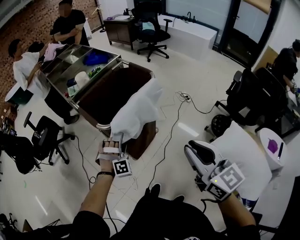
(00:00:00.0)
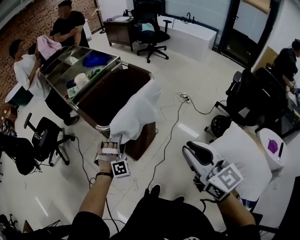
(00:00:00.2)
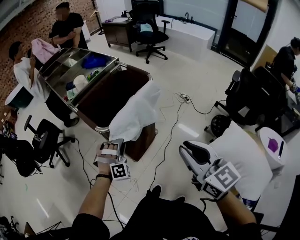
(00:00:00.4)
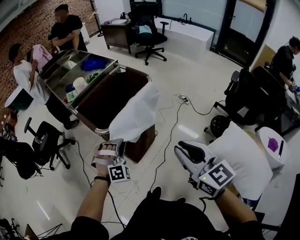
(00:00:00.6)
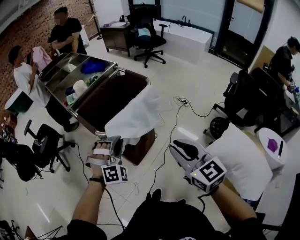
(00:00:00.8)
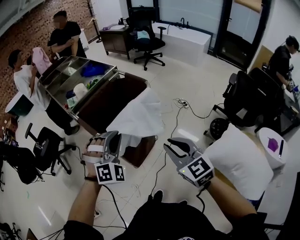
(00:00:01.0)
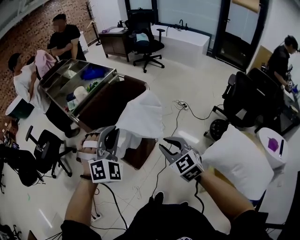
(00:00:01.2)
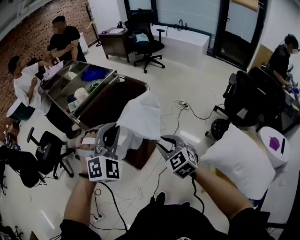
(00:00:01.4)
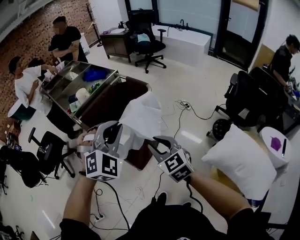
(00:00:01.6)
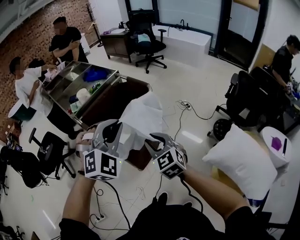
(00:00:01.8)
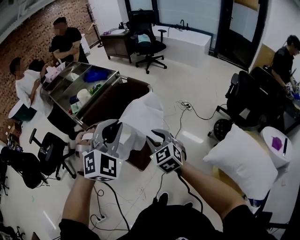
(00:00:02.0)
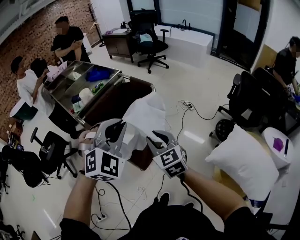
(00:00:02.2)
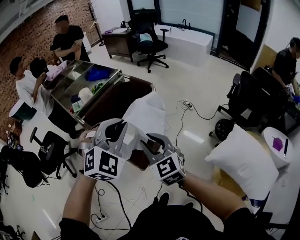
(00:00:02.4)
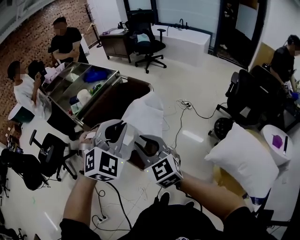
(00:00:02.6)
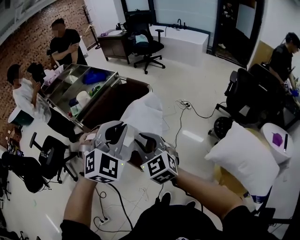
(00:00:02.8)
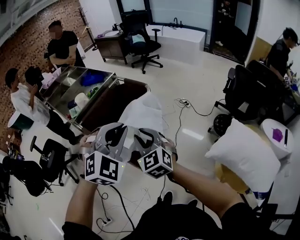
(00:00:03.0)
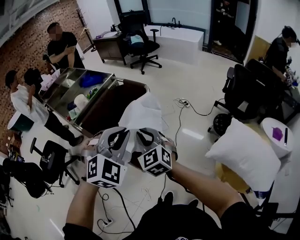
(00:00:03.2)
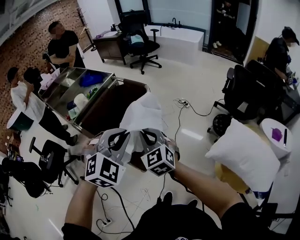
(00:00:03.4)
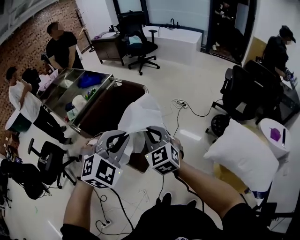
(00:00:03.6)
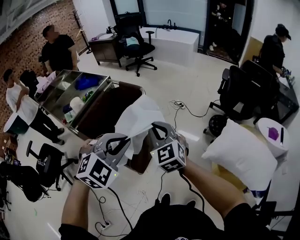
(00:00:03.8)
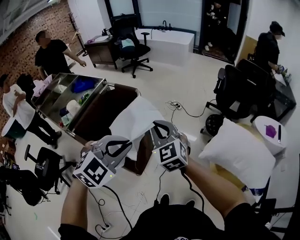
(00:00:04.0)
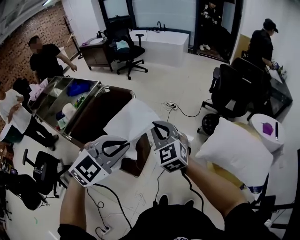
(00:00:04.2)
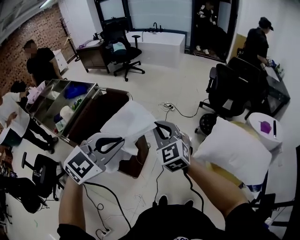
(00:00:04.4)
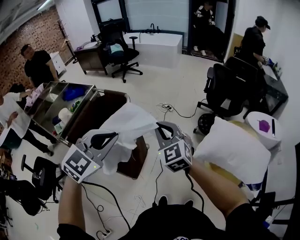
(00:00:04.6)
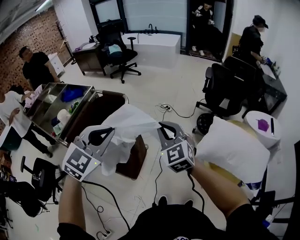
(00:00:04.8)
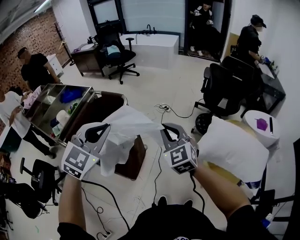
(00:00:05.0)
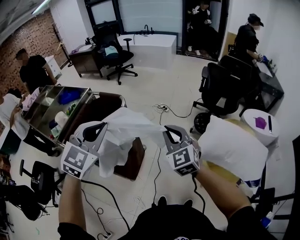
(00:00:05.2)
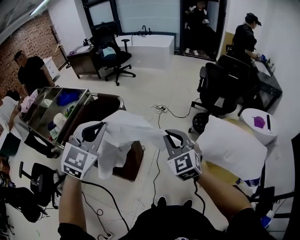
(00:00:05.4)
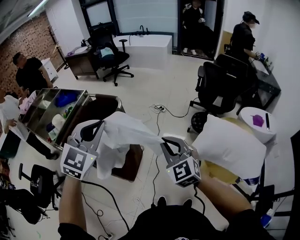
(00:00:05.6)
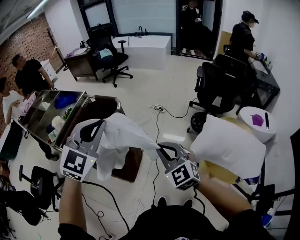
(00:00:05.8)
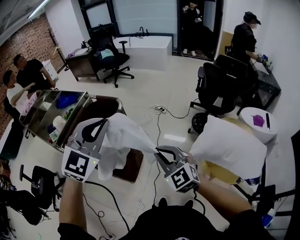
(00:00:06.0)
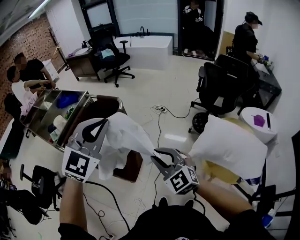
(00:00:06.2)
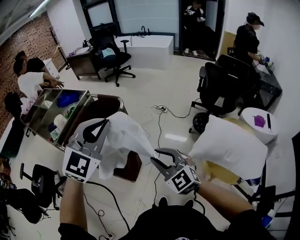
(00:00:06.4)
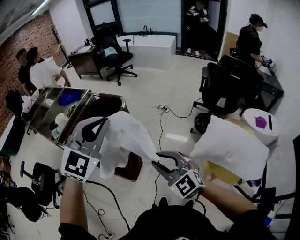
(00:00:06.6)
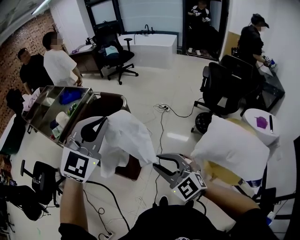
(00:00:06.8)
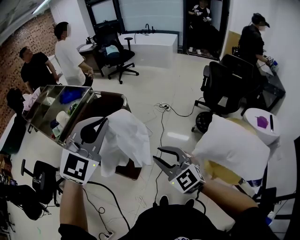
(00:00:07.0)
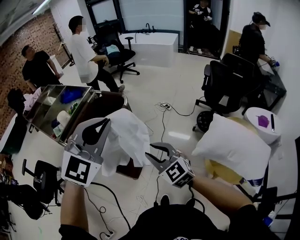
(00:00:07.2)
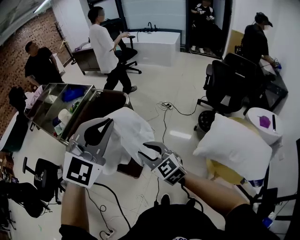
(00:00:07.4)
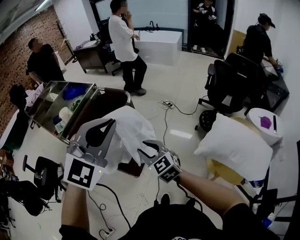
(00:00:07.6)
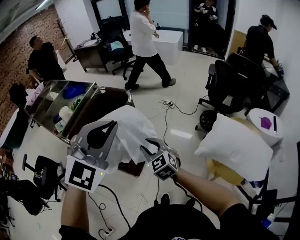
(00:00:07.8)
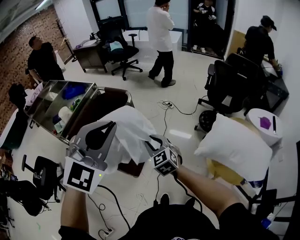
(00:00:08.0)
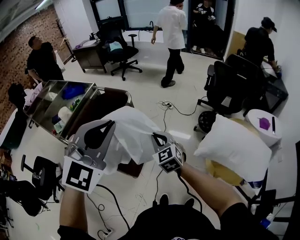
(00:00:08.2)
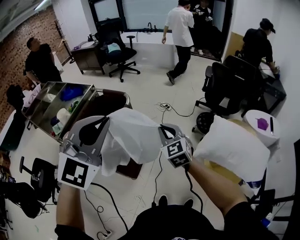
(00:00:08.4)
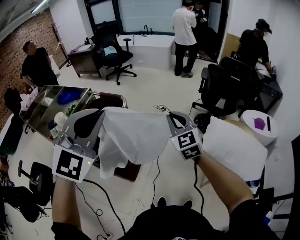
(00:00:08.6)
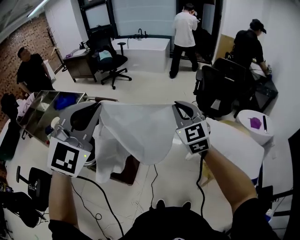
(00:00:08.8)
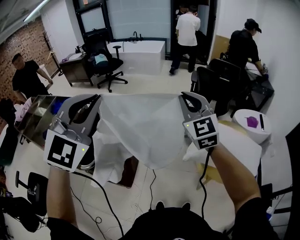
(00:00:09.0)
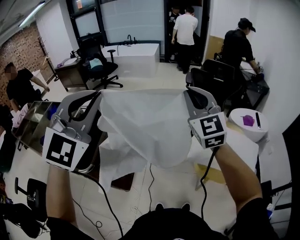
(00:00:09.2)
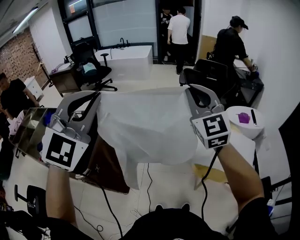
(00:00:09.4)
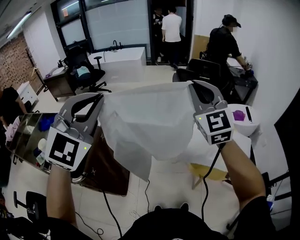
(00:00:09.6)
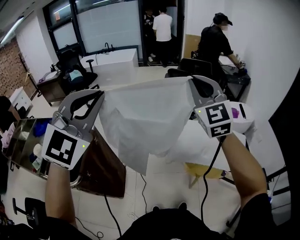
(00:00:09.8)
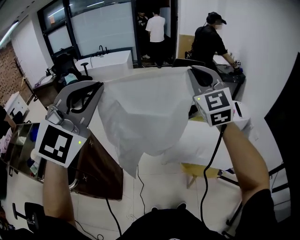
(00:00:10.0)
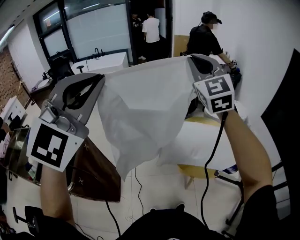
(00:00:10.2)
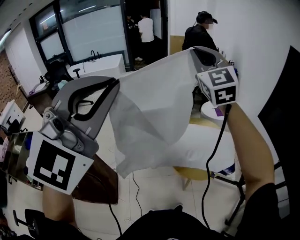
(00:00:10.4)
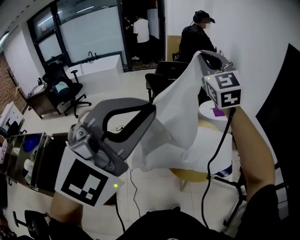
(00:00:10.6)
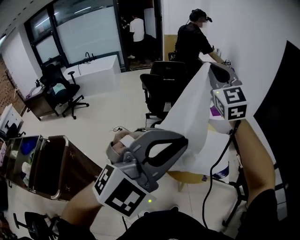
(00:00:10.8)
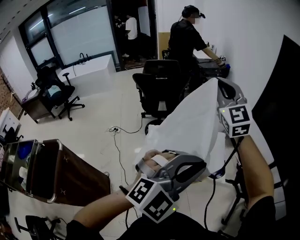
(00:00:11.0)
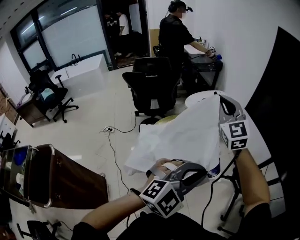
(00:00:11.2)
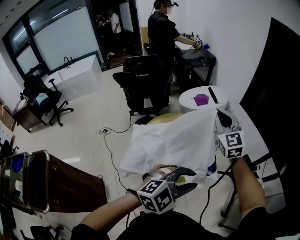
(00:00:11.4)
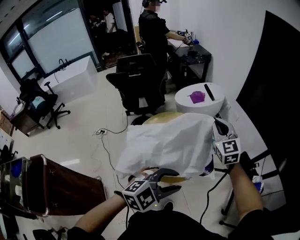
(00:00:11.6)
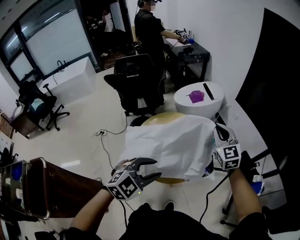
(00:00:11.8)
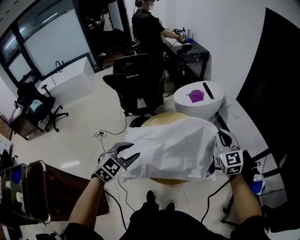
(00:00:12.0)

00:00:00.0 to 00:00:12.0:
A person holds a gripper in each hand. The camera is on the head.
00:00:00.0 to 00:00:01.6: The right gripper is displaced forward, downward and to the left by roughly 15 cm, and changes its angle by about 20 degrees; the left gripper shifts some 30 cm upward, changes its angle by about 30 degrees, and closes up.
00:00:01.6 to 00:00:03.0: The right gripper is displaced to the left by approximately 5 cm.
00:00:03.0 to 00:00:04.4: The right gripper shifts by roughly 15 cm, and closes. The left gripper changes place by some 5 cm, and turns by approximately 40 degrees.
00:00:04.4 to 00:00:06.0: The right gripper is displaced backward by some 10 cm. The left gripper moves upward, approximately 5 cm, and turns by some 20 degrees.
00:00:06.0 to 00:00:07.6: The right gripper goes approximately 10 cm to the left and downward, and opens its fingers.
00:00:07.6 to 00:00:09.0: The right gripper moves upward, to the right and forward, roughly 35 cm, swivels approximately 40 degrees, and closes its fingers, while the left gripper is displaced upward by some 10 cm.
00:00:09.0 to 00:00:10.4: The left gripper ends up some 30 cm from where it was, and turns by about 30 degrees, while the right gripper ends up some 35 cm from where it was, and rotates about 30 degrees.
00:00:10.4 to 00:00:12.0: The right gripper ends up approximately 50 cm from where it was, and rotates about 30 degrees, while the left gripper is displaced downward by some 40 cm, angles its fingers downward, by some 40 degrees, and opens its fingers.

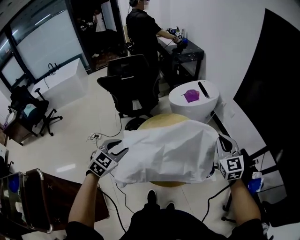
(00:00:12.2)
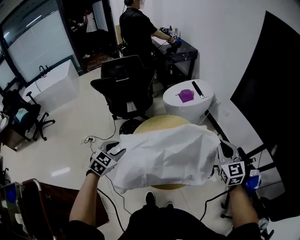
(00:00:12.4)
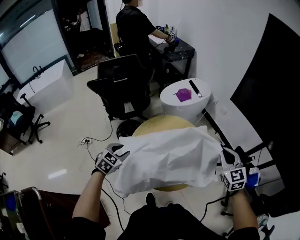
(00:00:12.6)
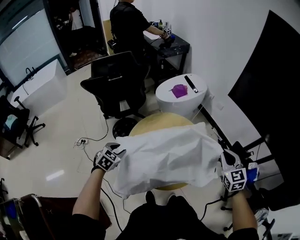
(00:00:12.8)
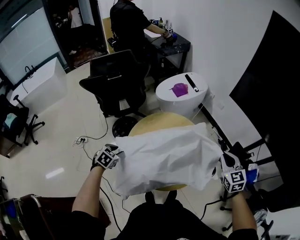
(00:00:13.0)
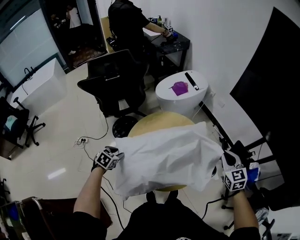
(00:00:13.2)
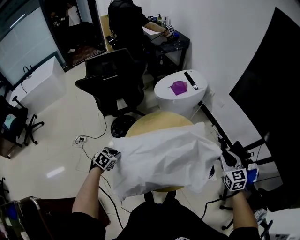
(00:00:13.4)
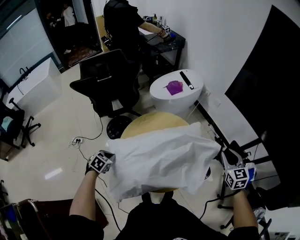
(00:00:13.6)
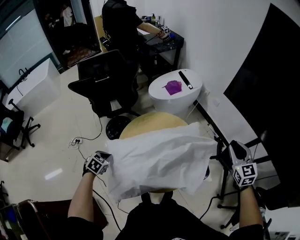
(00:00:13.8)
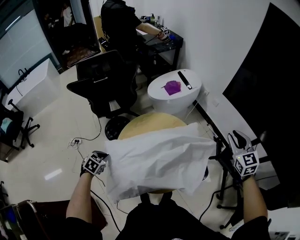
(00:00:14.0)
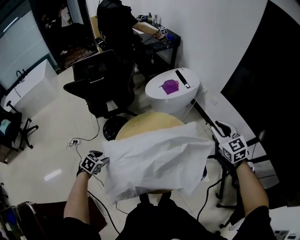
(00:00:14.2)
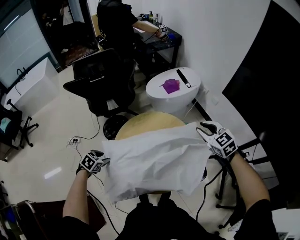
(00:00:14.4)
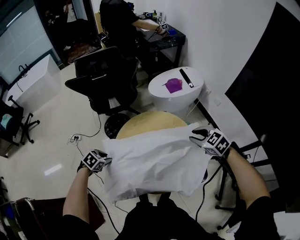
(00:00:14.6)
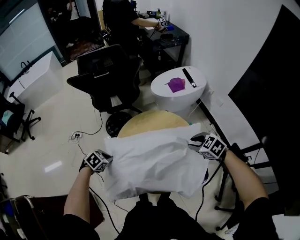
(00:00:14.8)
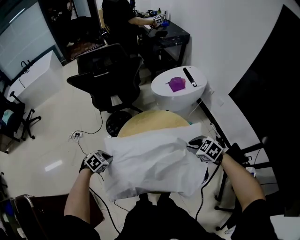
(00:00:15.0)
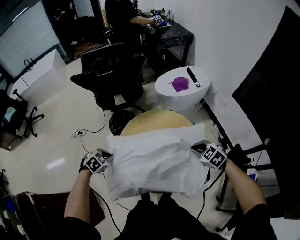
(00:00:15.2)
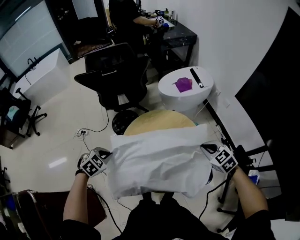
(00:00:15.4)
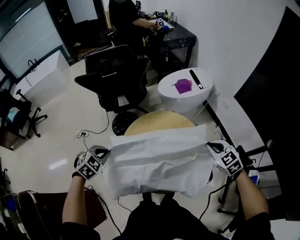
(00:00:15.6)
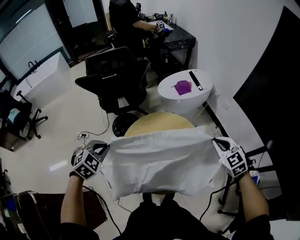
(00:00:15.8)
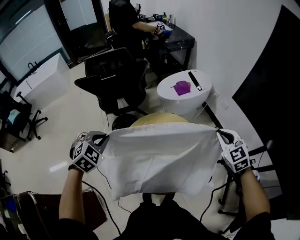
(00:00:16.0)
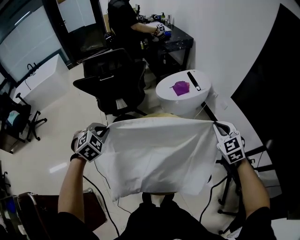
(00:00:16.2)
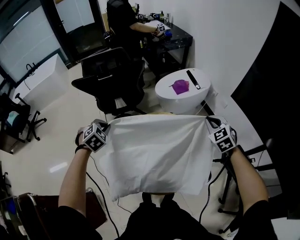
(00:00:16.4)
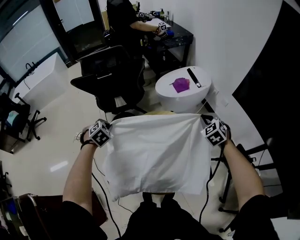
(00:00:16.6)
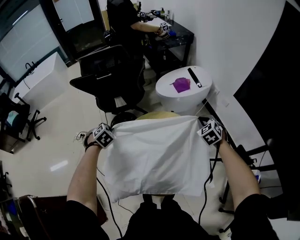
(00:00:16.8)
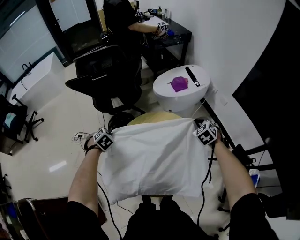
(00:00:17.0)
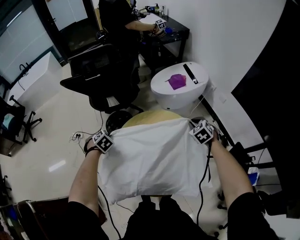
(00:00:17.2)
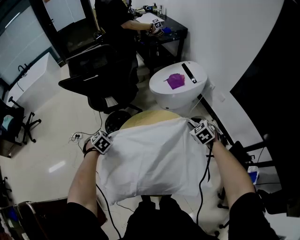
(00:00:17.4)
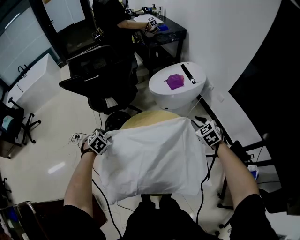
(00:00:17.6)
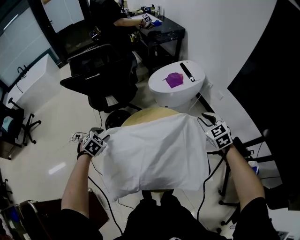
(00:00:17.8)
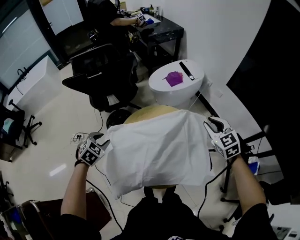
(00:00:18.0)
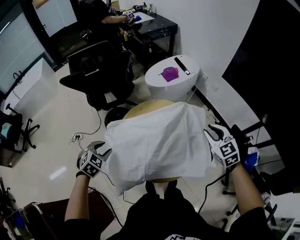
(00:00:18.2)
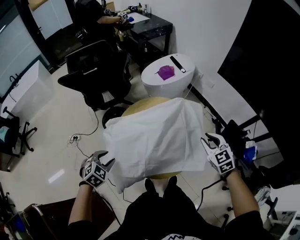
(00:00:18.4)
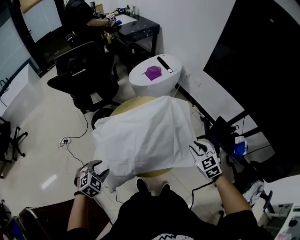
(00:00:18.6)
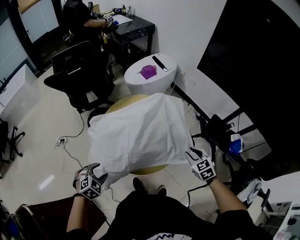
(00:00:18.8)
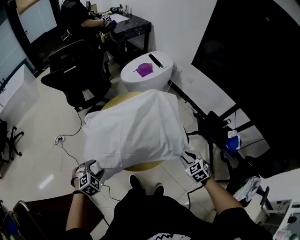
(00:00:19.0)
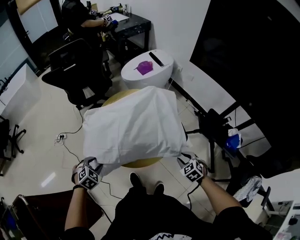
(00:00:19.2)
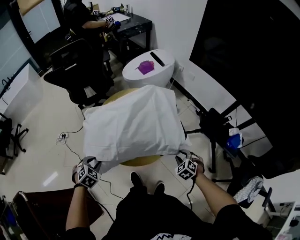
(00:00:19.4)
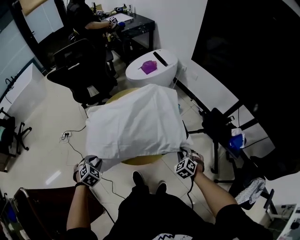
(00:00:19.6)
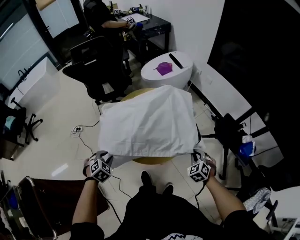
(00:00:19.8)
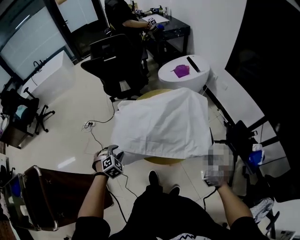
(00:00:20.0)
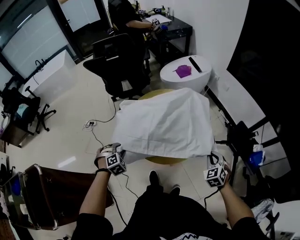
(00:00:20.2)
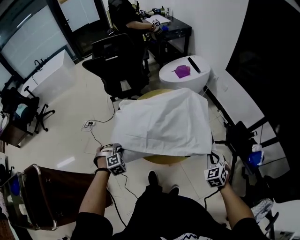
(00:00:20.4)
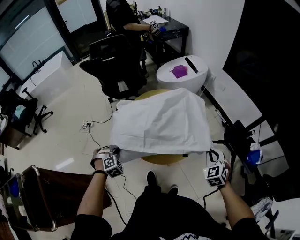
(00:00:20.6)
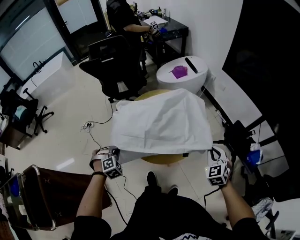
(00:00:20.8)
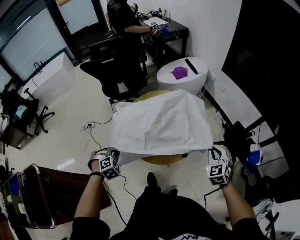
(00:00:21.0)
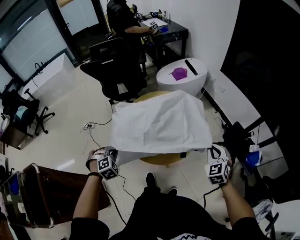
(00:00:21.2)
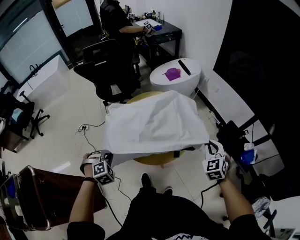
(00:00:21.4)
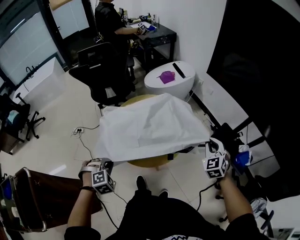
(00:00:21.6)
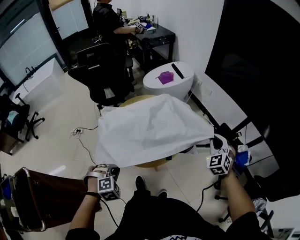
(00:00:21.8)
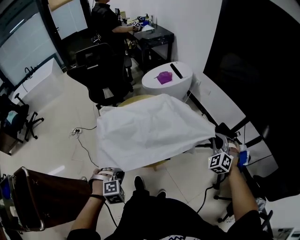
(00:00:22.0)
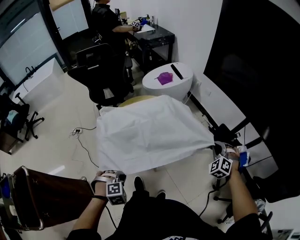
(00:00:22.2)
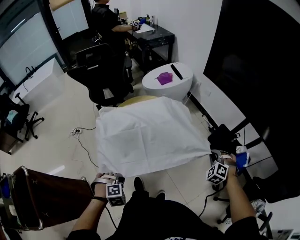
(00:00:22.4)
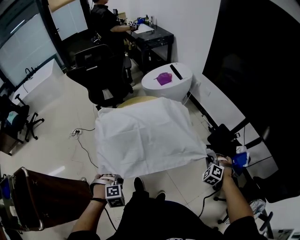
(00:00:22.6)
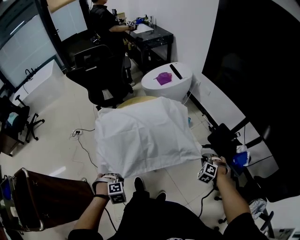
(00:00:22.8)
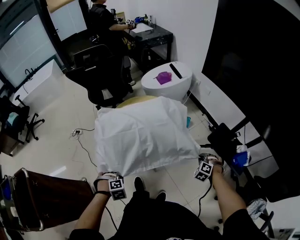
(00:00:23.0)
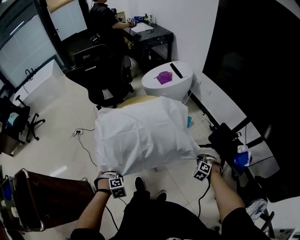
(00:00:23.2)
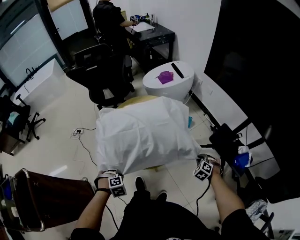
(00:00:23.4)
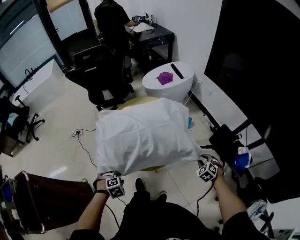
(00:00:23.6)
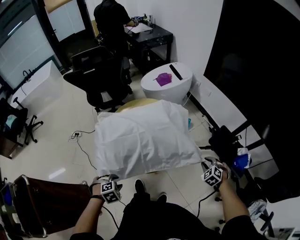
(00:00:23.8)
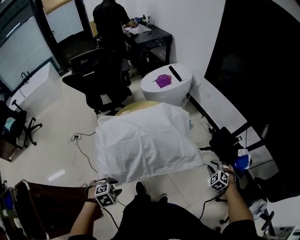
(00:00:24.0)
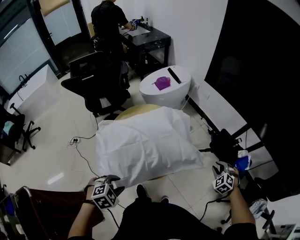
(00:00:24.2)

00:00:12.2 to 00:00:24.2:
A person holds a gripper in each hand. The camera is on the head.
00:00:12.2 to 00:00:13.8: The right gripper heads to the right, covering approximately 10 cm, and opens, while the left gripper is displaced downward and to the left by about 20 cm, turns by roughly 30 degrees, and closes its fingers.
00:00:13.8 to 00:00:15.2: The left gripper opens, then closes once more. The right gripper travels to the left and downward by roughly 25 cm, angles its fingers downward, by approximately 40 degrees, and closes its fingers.
00:00:15.2 to 00:00:16.6: The two grippers go roughly 15 cm forward and upward. The right gripper changes its angle by approximately 30 degrees, while the left gripper swivels about 20 degrees.
00:00:16.6 to 00:00:18.2: Both grippers move backward, approximately 15 cm. The left gripper opens its fingers, while the right gripper turns by some 20 degrees, and opens up.
00:00:18.2 to 00:00:19.8: The right gripper heads backward and downward, covering some 25 cm, rotates about 20 degrees, and closes up. The left gripper goes about 20 cm backward, to the right and downward.
00:00:19.8 to 00:00:21.2: The right gripper shifts about 15 cm upward.
00:00:21.2 to 00:00:22.6: The right gripper goes roughly 15 cm to the right and downward, and swivels some 40 degrees. The left gripper goes approximately 20 cm to the right and backward.
00:00:22.6 to 00:00:24.2: The right gripper goes downward and returns, some 10 cm each way, and opens. The left gripper ends up roughly 10 cm from where it was, rotates some 20 degrees, and opens up.
